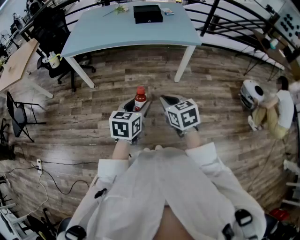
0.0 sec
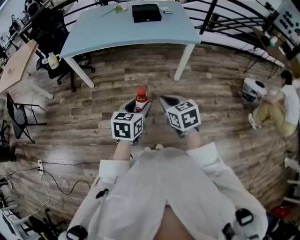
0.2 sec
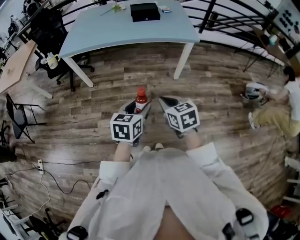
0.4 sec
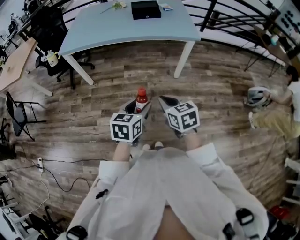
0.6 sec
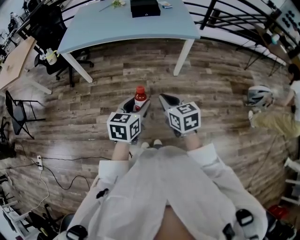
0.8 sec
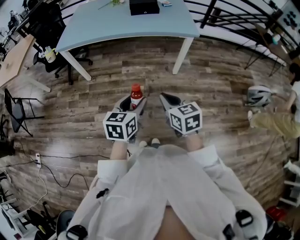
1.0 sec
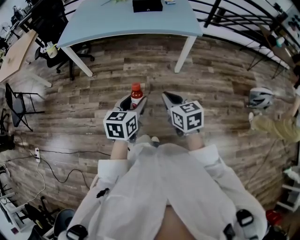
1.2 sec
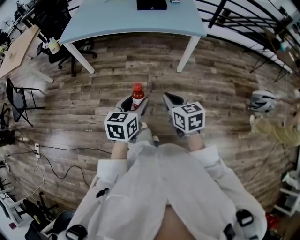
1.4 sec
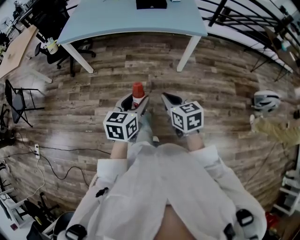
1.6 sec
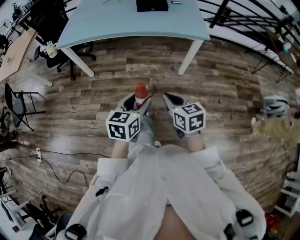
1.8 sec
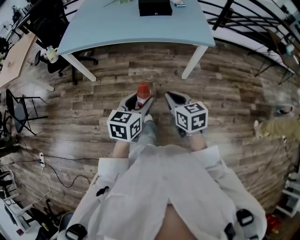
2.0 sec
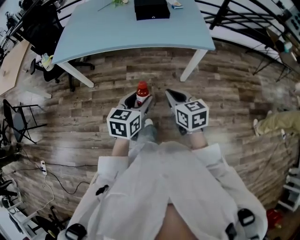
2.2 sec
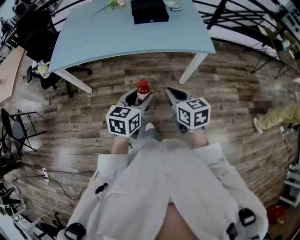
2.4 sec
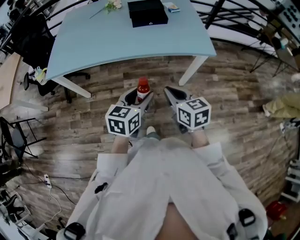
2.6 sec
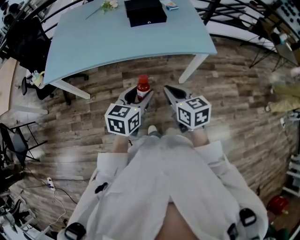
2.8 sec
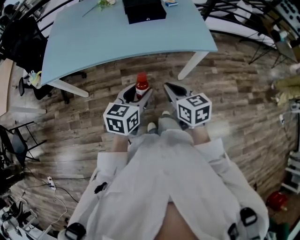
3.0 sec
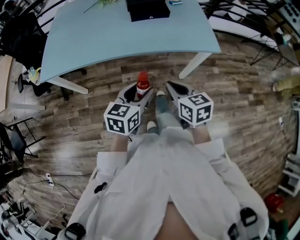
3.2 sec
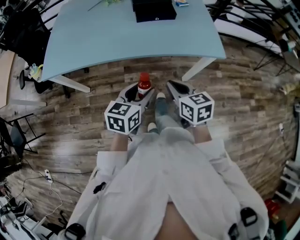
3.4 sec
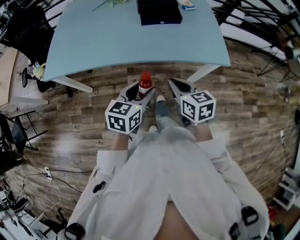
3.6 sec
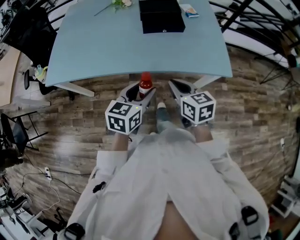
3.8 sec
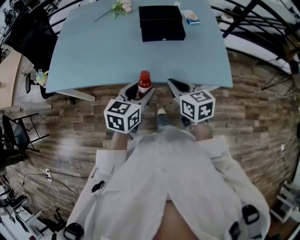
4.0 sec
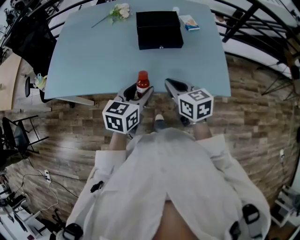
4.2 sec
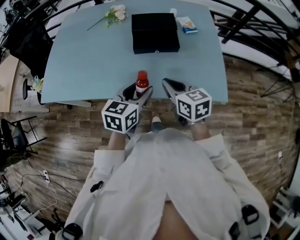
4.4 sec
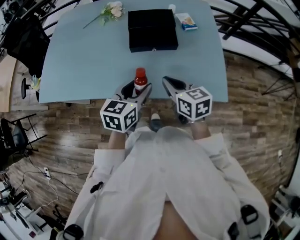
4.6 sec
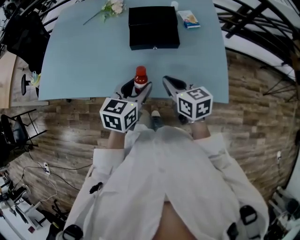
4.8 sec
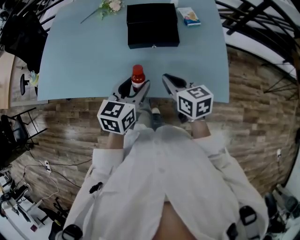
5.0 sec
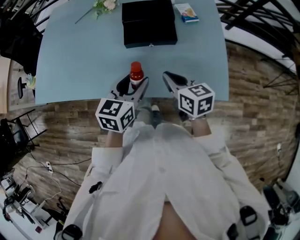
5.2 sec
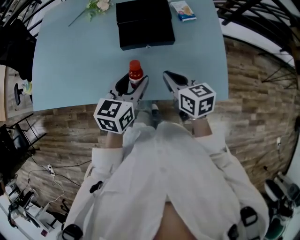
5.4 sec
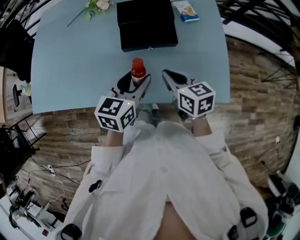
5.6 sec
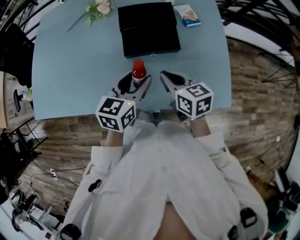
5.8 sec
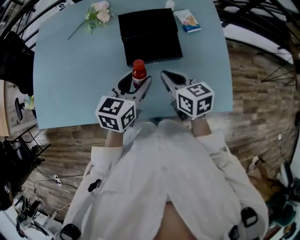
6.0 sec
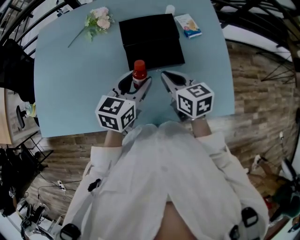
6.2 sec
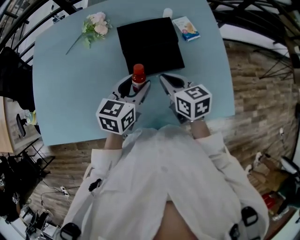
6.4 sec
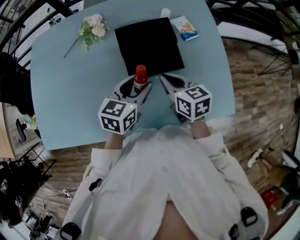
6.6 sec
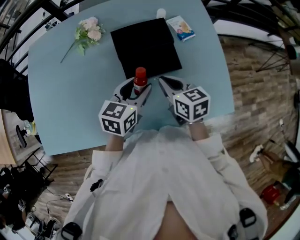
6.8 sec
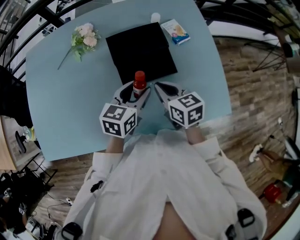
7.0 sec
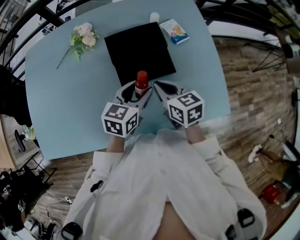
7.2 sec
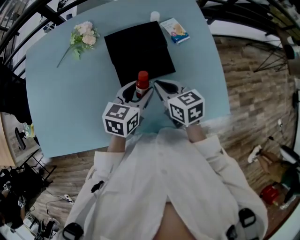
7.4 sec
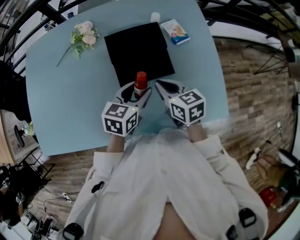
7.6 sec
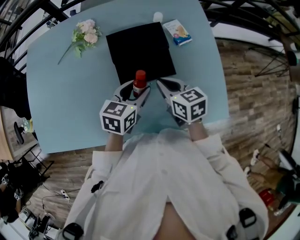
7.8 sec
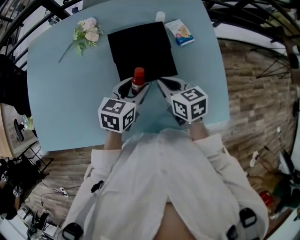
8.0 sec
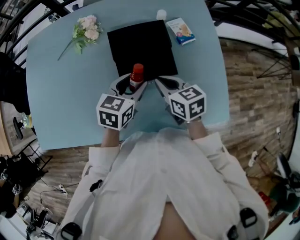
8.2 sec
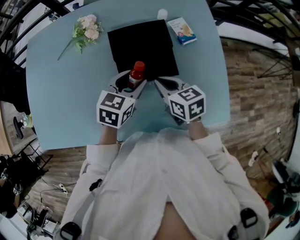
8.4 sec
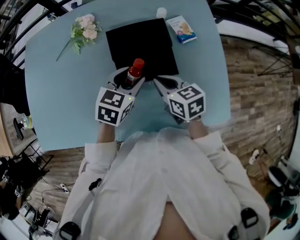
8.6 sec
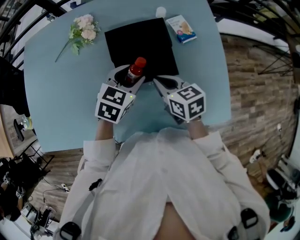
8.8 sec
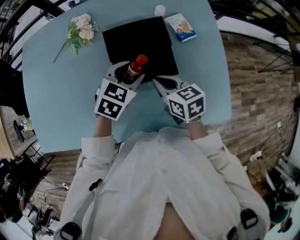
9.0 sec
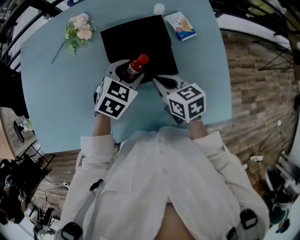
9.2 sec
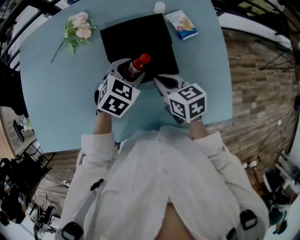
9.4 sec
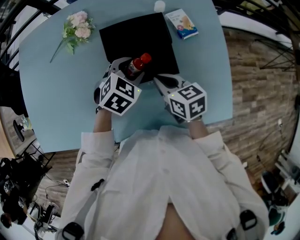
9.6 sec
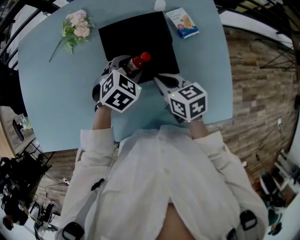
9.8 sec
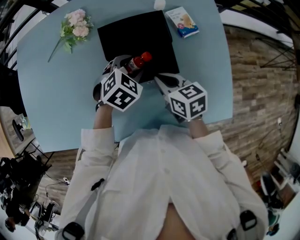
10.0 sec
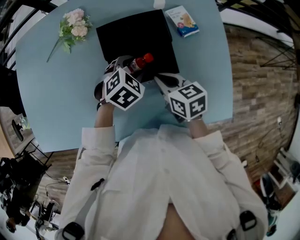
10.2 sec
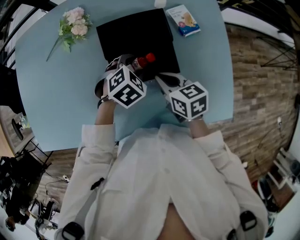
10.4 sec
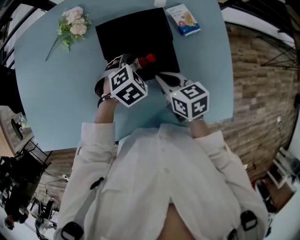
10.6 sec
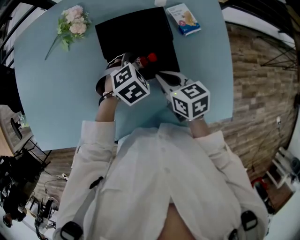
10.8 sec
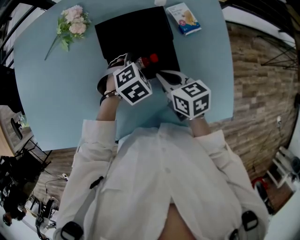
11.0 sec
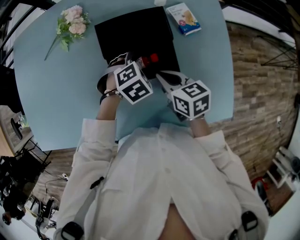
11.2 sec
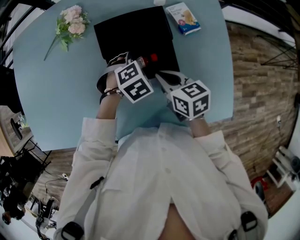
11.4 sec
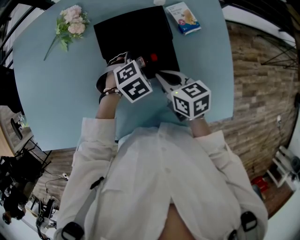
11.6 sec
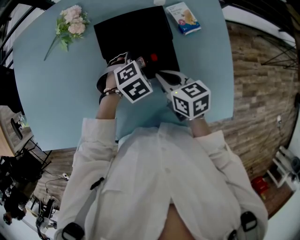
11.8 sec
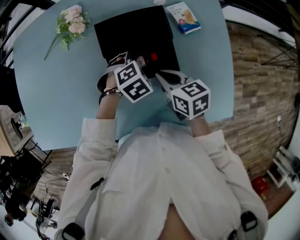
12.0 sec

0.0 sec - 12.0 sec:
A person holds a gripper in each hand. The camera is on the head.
0.0 sec - 1.6 sec: The right gripper changes place by roughly 5 cm.
1.6 sec - 3.0 sec: Both grippers travel together forward, roughly 30 cm.
3.0 sec - 4.4 sec: Both grippers move forward, approximately 30 cm.
4.4 sec - 6.0 sec: Both grippers travel together forward, roughly 15 cm.
6.0 sec - 7.6 sec: The grippers both shift forward by roughly 5 cm.
7.6 sec - 9.0 sec: The left gripper goes roughly 10 cm forward, and rotates about 30 degrees.
9.0 sec - 10.4 sec: The left gripper is displaced downward by approximately 10 cm, and swivels approximately 20 degrees.
10.4 sec - 12.0 sec: The grippers make only small movements.

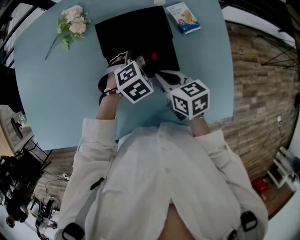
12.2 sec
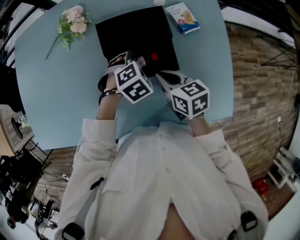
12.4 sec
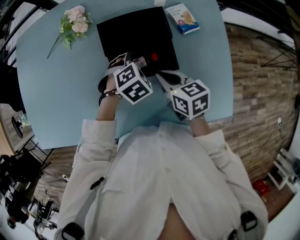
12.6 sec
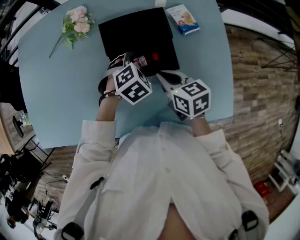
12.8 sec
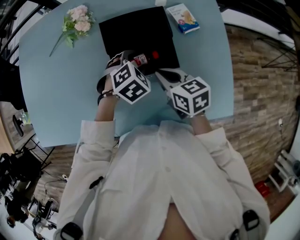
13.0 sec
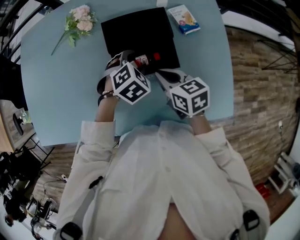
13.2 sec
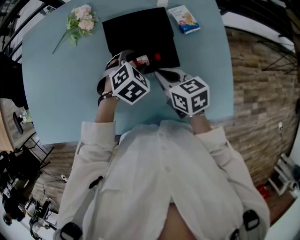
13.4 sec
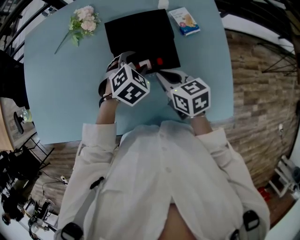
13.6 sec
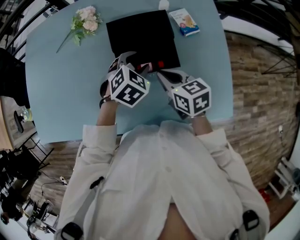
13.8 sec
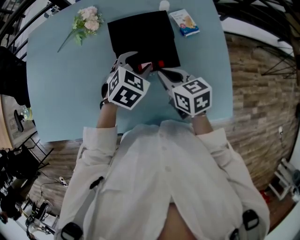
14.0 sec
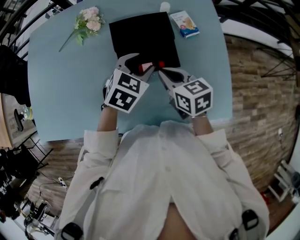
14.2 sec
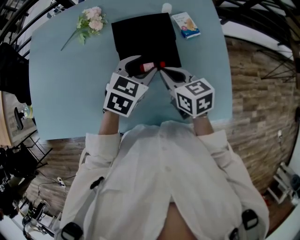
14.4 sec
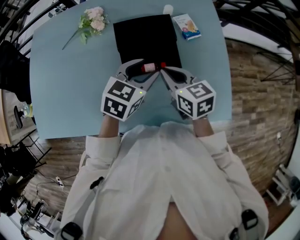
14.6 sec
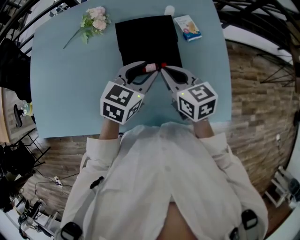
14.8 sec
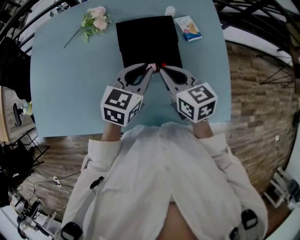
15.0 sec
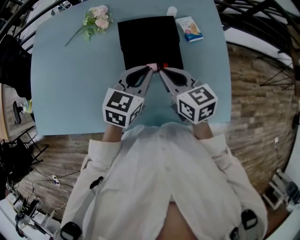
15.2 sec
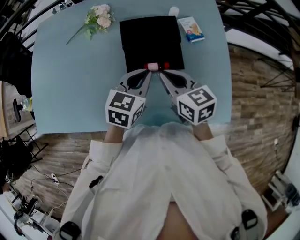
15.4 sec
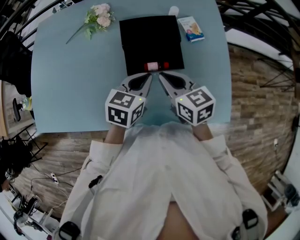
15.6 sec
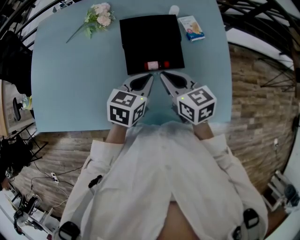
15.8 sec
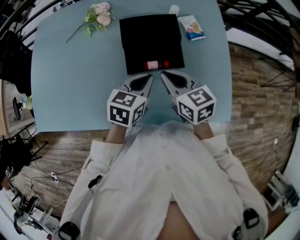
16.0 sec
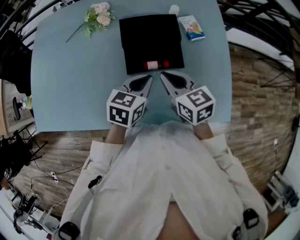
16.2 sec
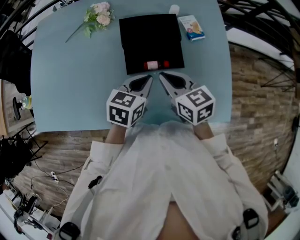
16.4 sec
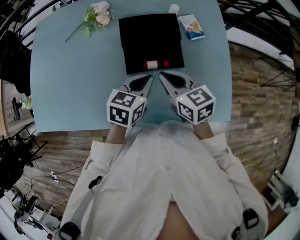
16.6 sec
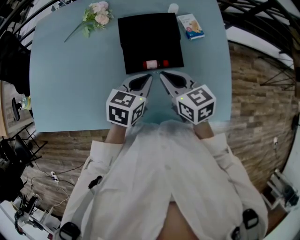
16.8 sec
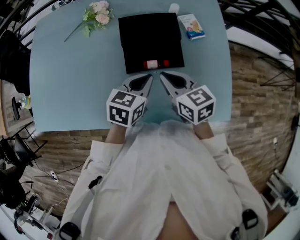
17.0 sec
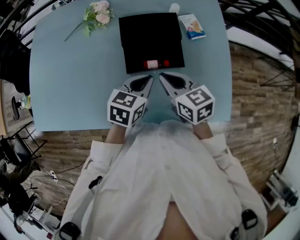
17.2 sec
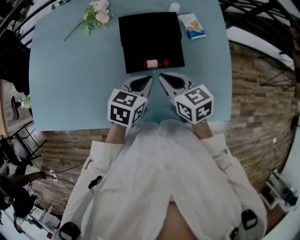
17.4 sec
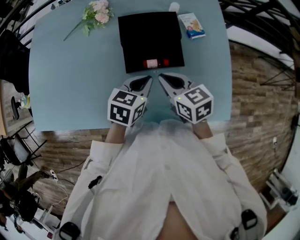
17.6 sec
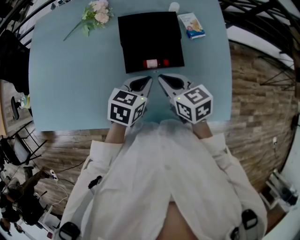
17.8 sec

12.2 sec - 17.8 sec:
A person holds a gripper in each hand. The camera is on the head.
12.2 sec - 13.6 sec: The left gripper shifts about 5 cm upward.
13.6 sec - 15.0 sec: The grippers both shift upward by approximately 10 cm. The left gripper tips its fingers upward by some 30 degrees, and closes.
15.0 sec - 16.4 sec: The left gripper travels downward by approximately 5 cm.
16.4 sec - 17.8 sec: The grippers move only a little.

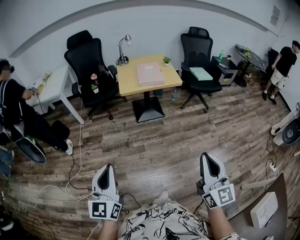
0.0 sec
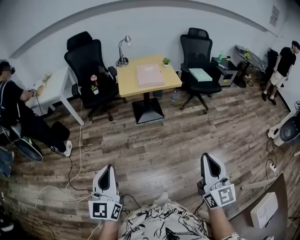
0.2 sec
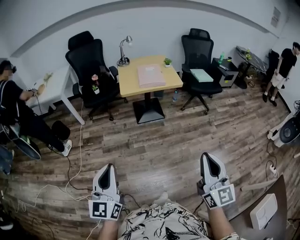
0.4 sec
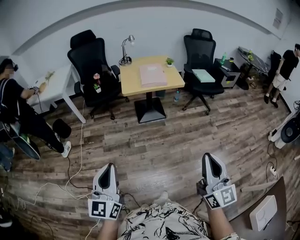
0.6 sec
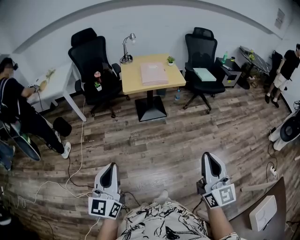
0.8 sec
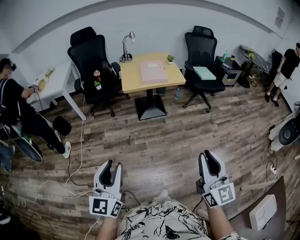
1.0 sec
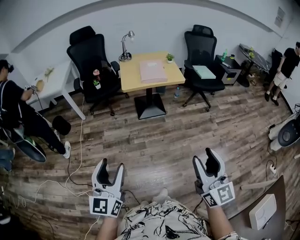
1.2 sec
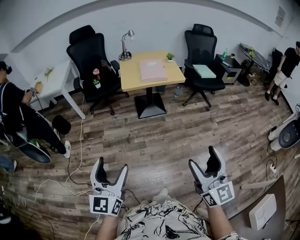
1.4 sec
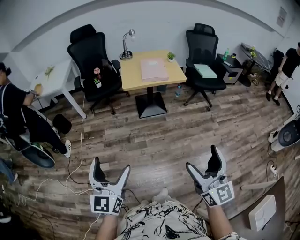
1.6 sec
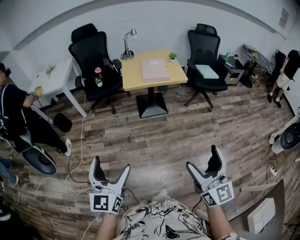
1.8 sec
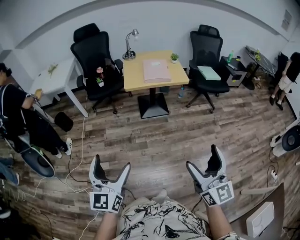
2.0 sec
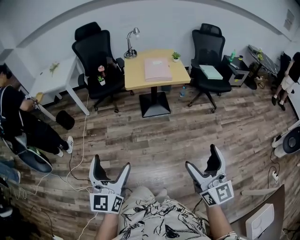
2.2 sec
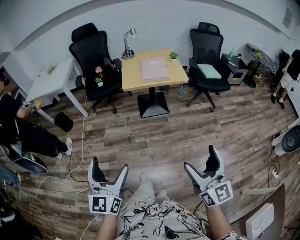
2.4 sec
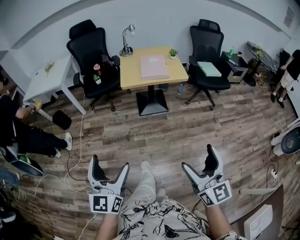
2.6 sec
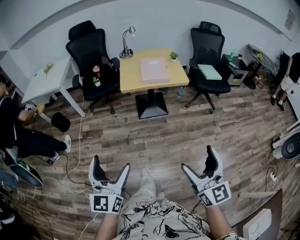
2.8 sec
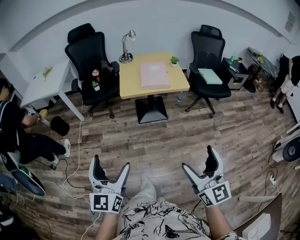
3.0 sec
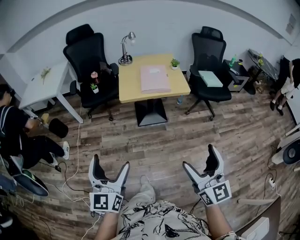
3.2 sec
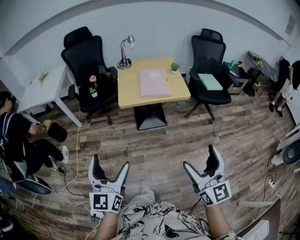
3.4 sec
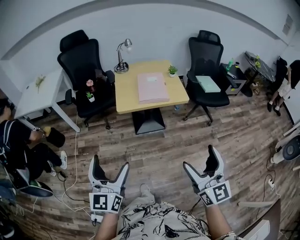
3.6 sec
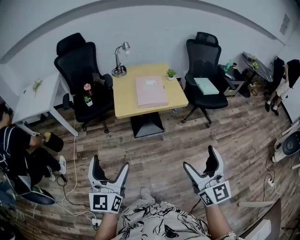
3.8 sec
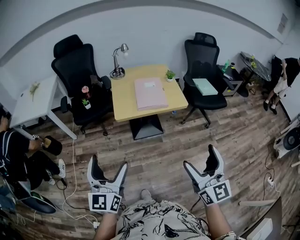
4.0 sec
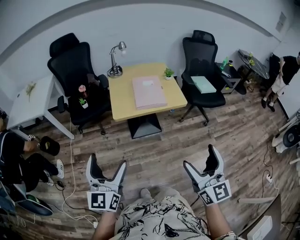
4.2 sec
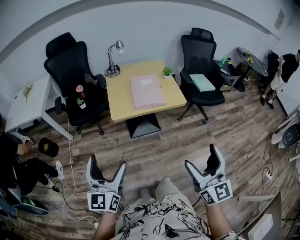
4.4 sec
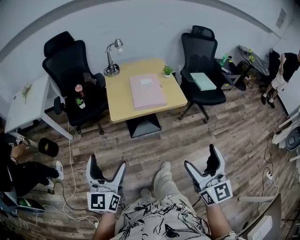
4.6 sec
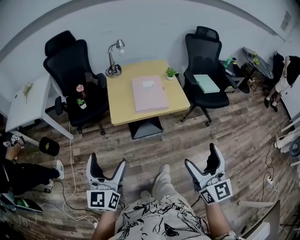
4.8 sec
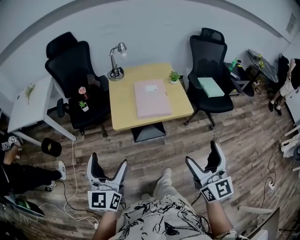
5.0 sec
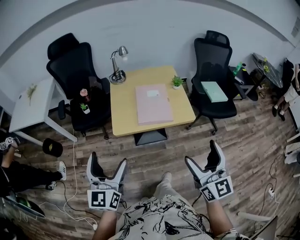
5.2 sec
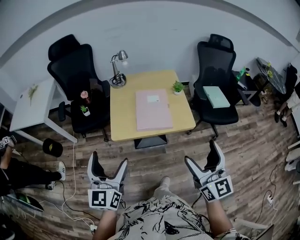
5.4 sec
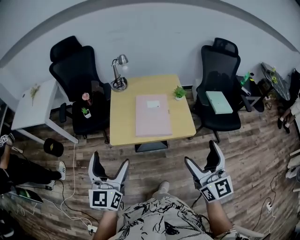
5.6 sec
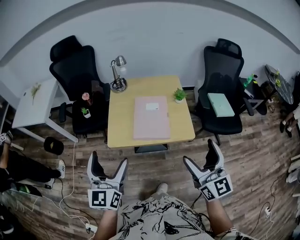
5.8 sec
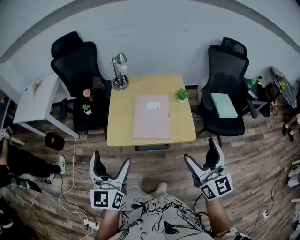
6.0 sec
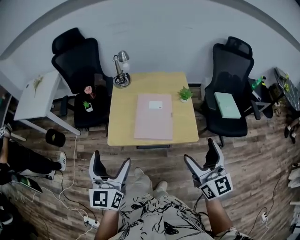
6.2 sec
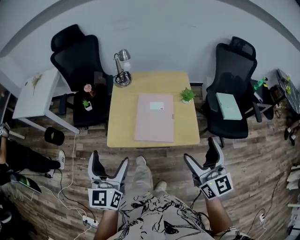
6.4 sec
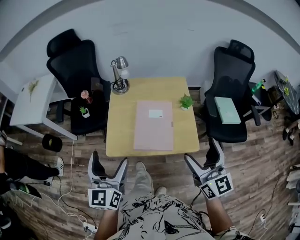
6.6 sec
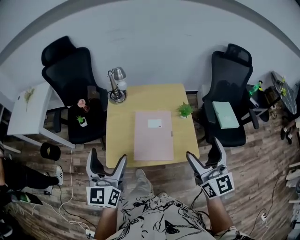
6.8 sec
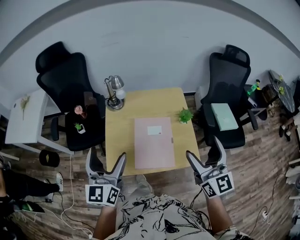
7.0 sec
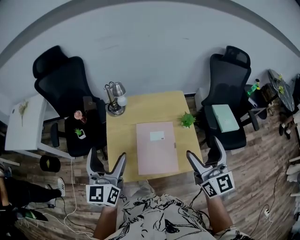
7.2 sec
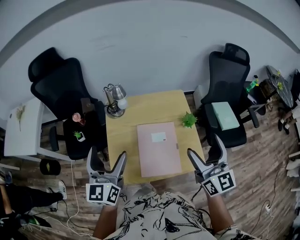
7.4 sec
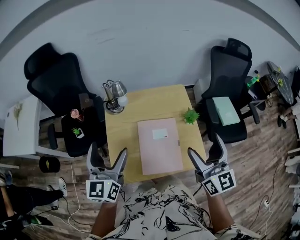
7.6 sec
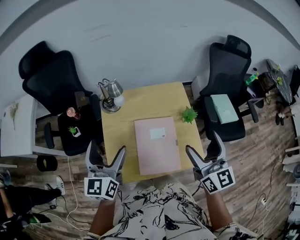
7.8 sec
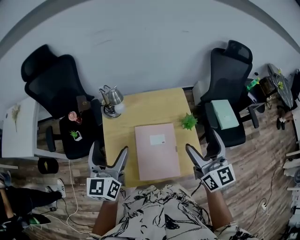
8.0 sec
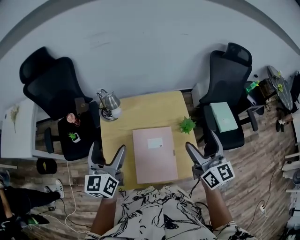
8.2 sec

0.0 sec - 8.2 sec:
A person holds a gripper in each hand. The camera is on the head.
0.0 sec - 1.6 sec: The left gripper opens. The right gripper opens up.
1.6 sec - 3.2 sec: The two grippers go roughly 15 cm forward.
3.2 sec - 5.0 sec: Both grippers travel together forward, approximately 25 cm.
5.0 sec - 6.6 sec: The right gripper shifts roughly 30 cm forward. The left gripper heads forward and to the right, covering roughly 25 cm.
6.6 sec - 8.2 sec: Both grippers move forward, approximately 25 cm.
